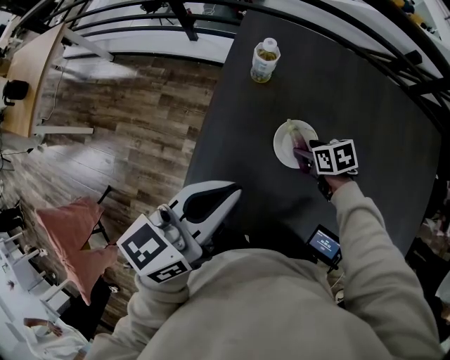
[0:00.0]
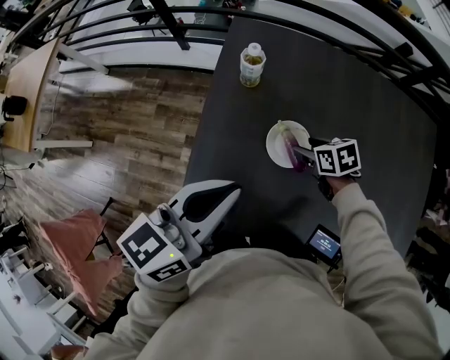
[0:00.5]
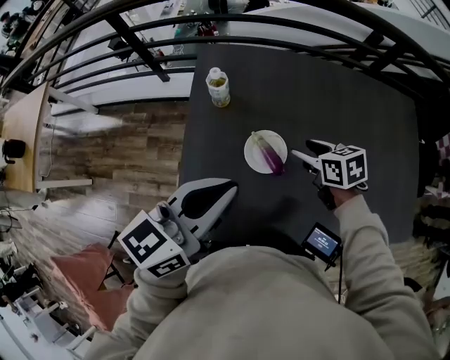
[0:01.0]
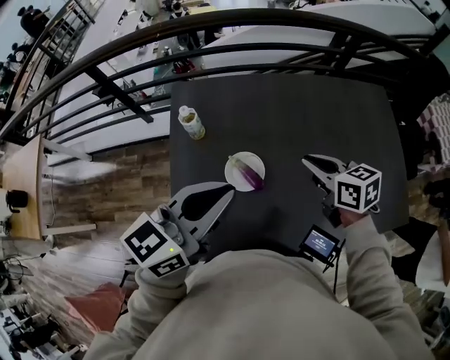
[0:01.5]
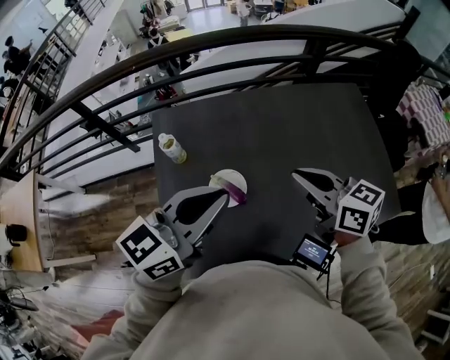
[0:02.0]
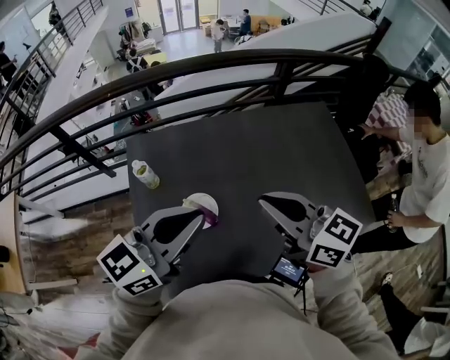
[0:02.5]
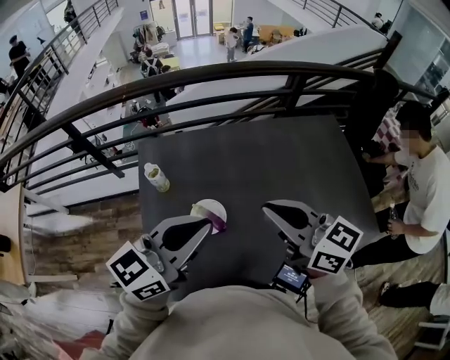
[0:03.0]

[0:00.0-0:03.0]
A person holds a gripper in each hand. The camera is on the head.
0:00.0 to 0:01.5: The left gripper shifts by approximately 15 cm, and rotates approximately 30 degrees, while the right gripper is displaced upward by about 25 cm, rotates about 40 degrees, and closes.
0:01.5 to 0:03.0: The right gripper goes approximately 20 cm upward and backward, and turns by about 30 degrees; the left gripper changes place by approximately 5 cm.

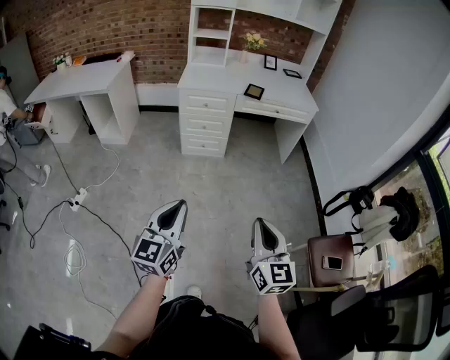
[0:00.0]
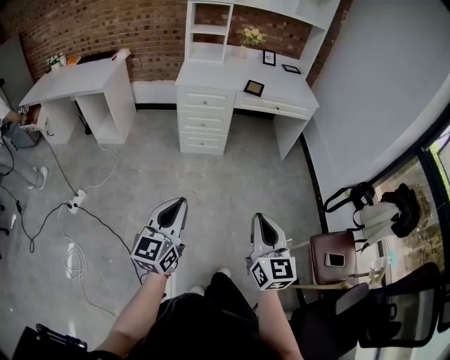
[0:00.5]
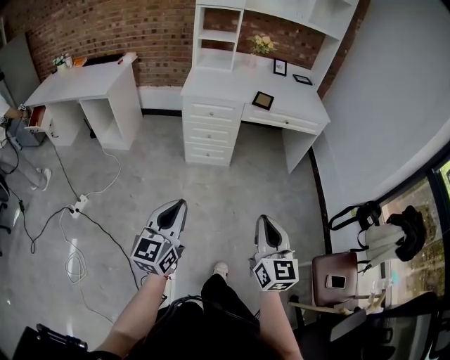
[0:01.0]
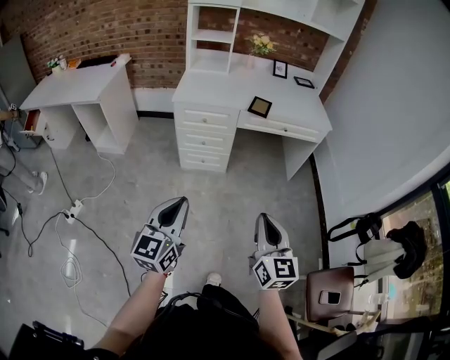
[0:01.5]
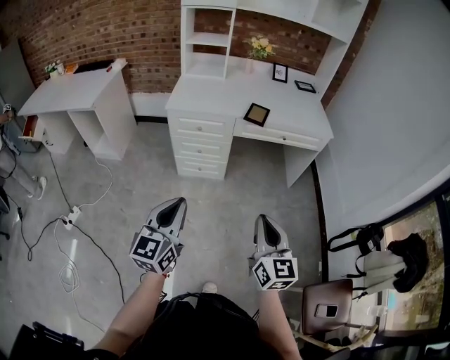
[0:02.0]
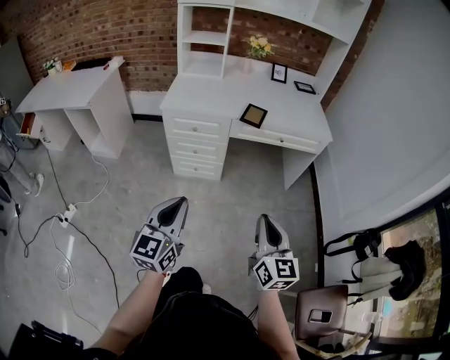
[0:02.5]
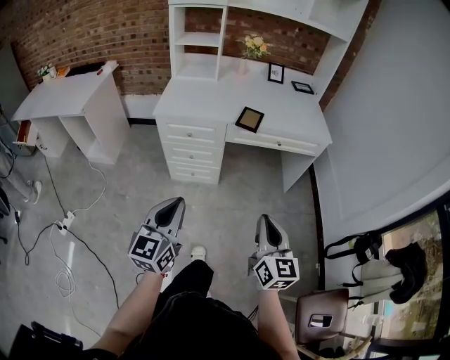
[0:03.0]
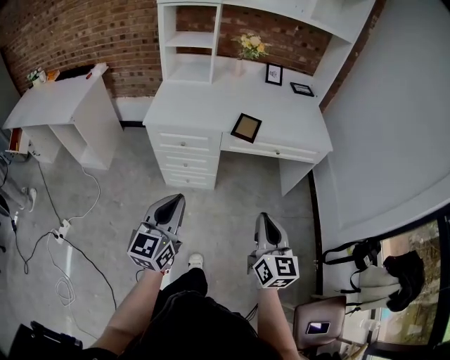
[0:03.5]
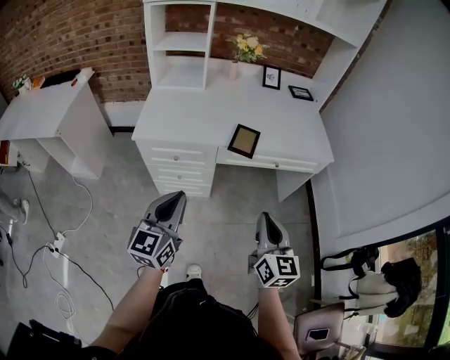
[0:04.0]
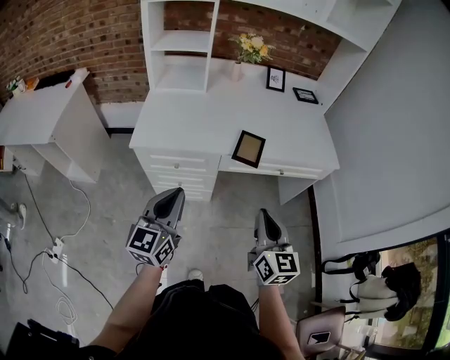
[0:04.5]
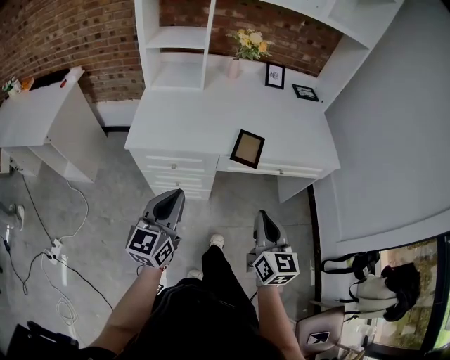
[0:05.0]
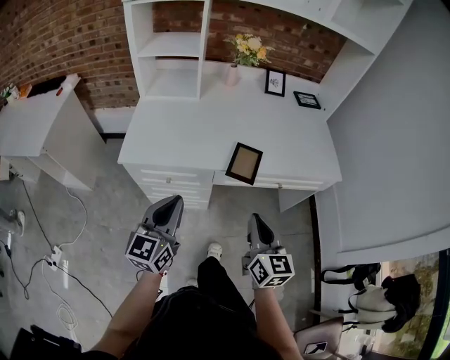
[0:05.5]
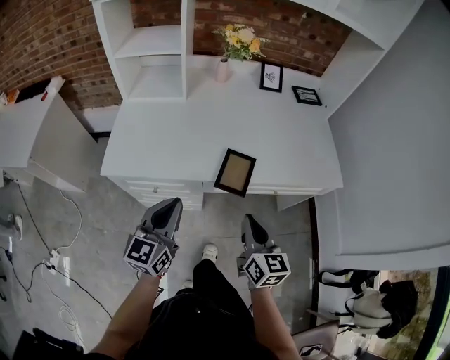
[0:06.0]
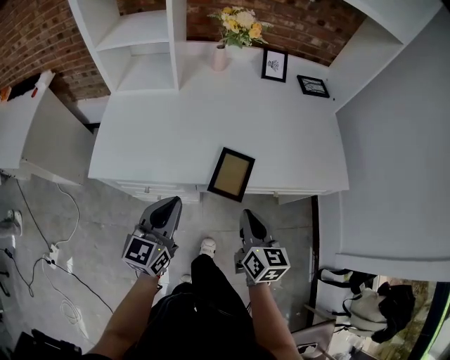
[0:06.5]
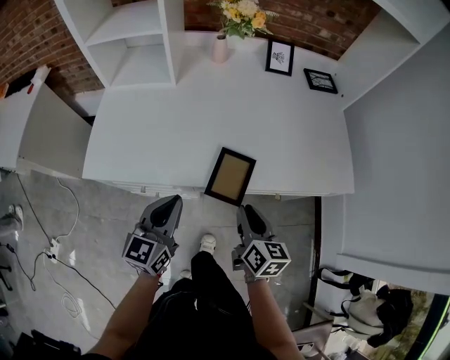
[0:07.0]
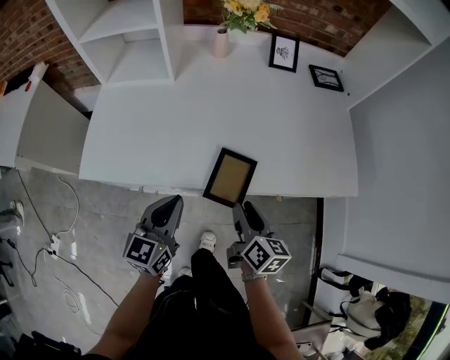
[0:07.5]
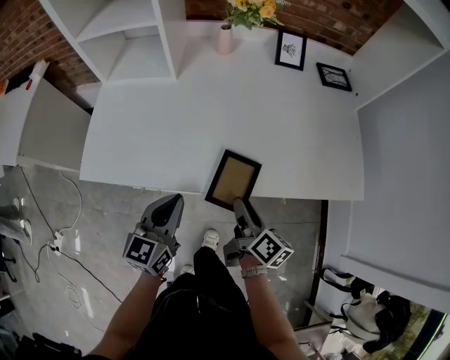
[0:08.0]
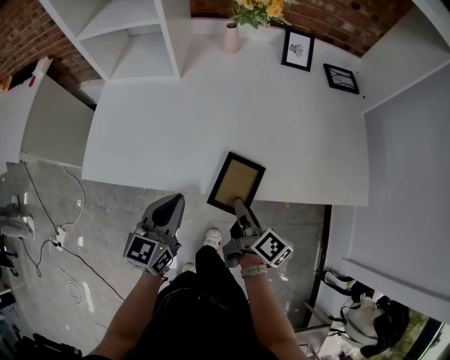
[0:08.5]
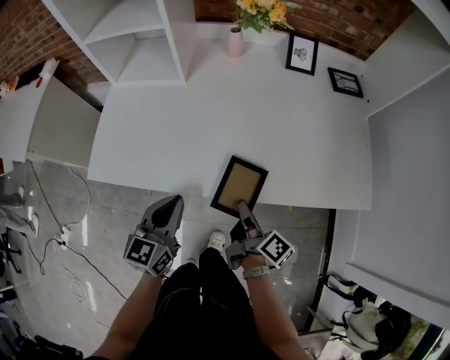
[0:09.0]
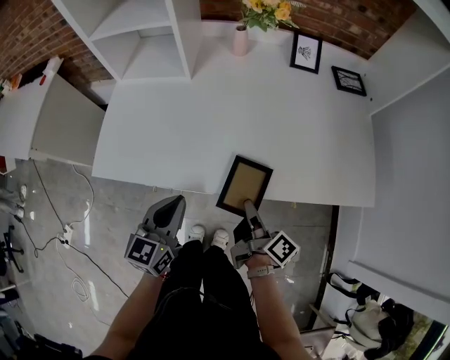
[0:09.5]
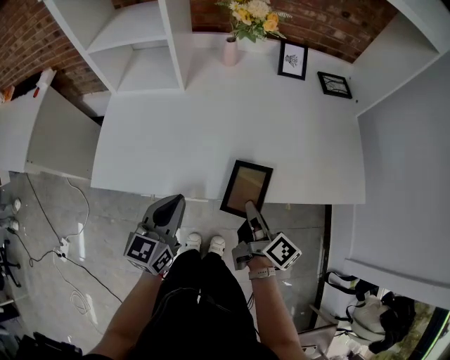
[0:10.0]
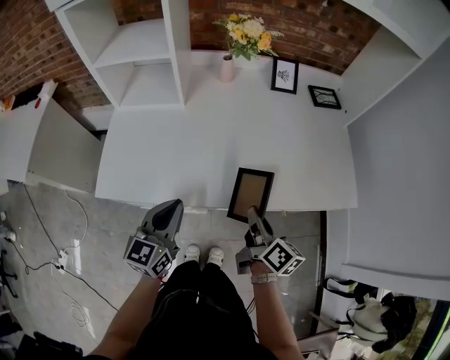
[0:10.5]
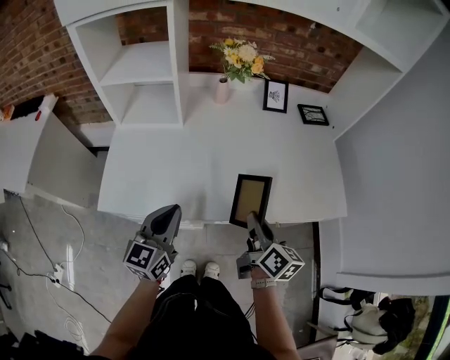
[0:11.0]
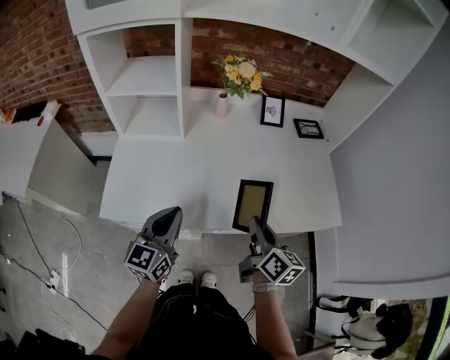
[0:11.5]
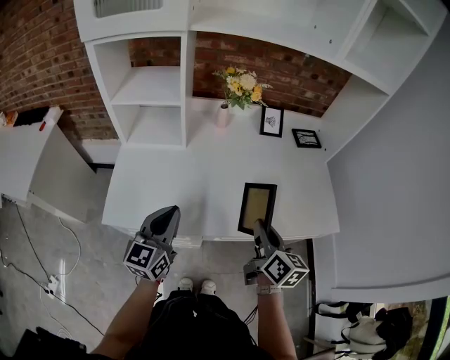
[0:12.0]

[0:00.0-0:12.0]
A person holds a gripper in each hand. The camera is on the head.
0:00.0 to 0:02.0: The two grippers go some 30 cm forward.
0:02.0 to 0:04.0: Both grippers move forward, about 25 cm.
0:04.0 to 0:06.0: The two grippers go roughly 20 cm forward.
0:06.0 to 0:08.0: Both grippers travel together forward and downward, roughly 15 cm. The right gripper rotates around the line of its fingers by some 40 degrees, clockwise from behind, and opens.
0:08.0 to 0:10.0: The right gripper closes.
0:10.0 to 0:12.0: The grippers both shift upward by some 10 cm. The right gripper changes its angle by some 30 degrees.

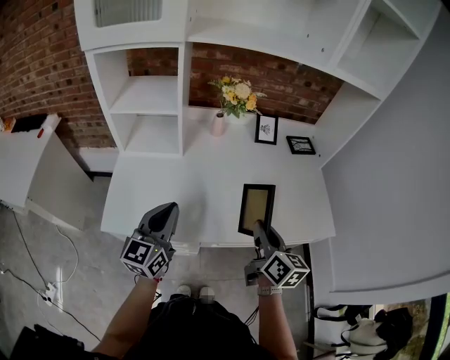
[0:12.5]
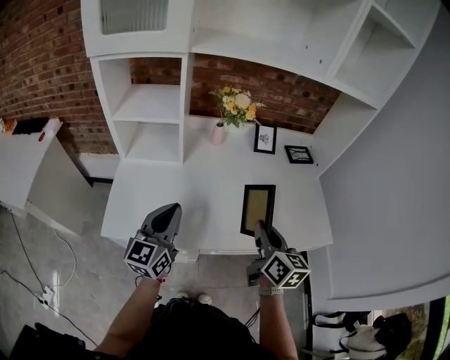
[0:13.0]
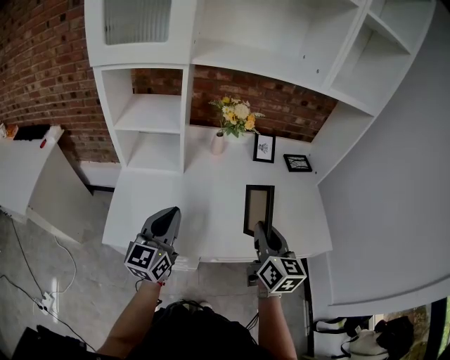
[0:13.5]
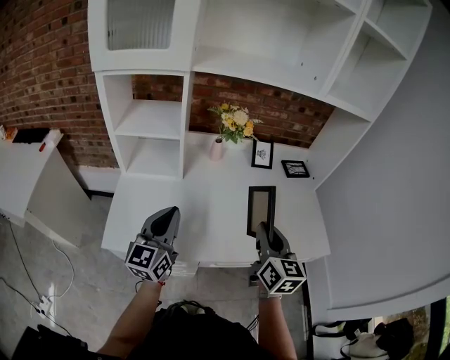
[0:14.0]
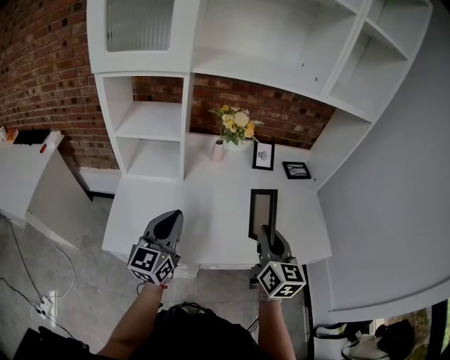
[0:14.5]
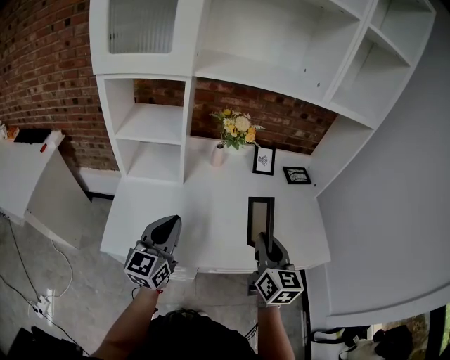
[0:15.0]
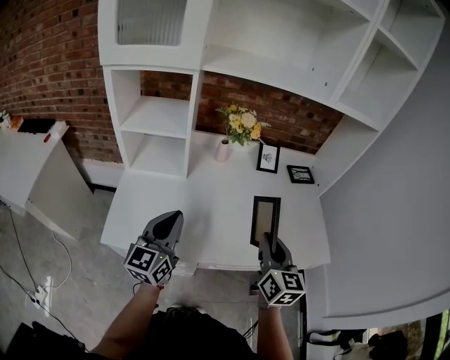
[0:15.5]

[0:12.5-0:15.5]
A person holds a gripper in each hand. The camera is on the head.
0:12.5 to 0:14.0: The right gripper heads upward, covering some 5 cm.
0:14.0 to 0:15.5: The grippers move only a little.

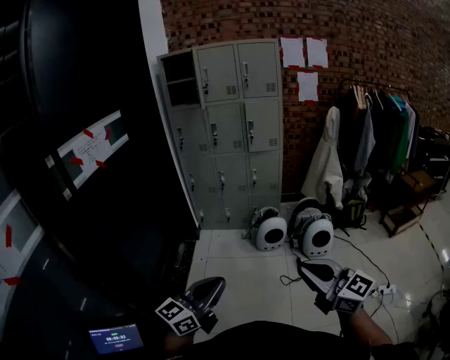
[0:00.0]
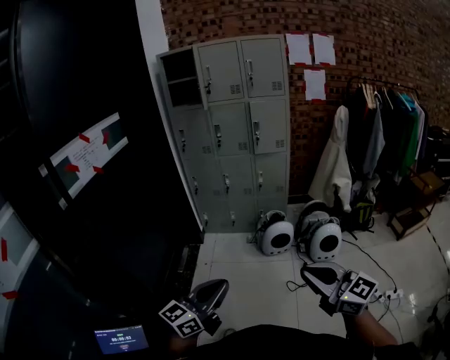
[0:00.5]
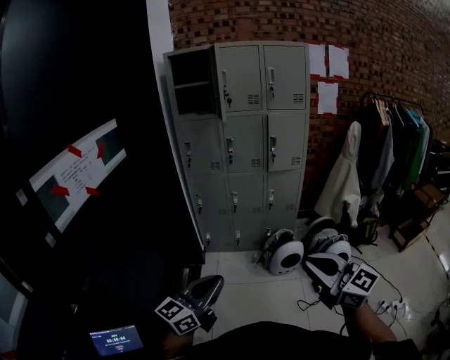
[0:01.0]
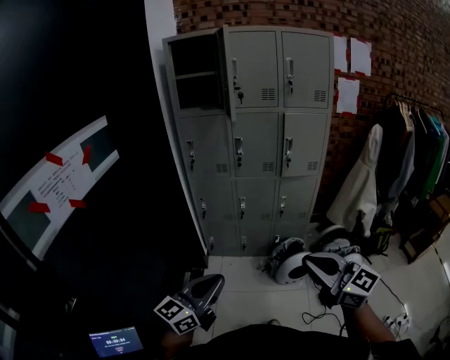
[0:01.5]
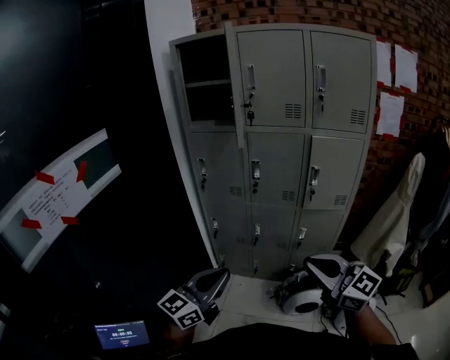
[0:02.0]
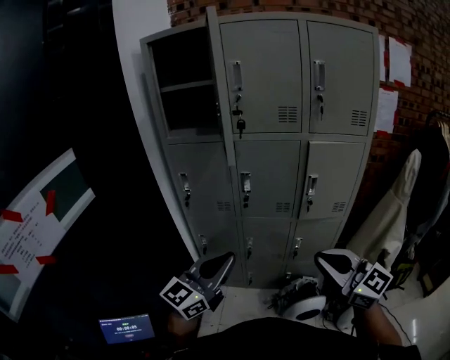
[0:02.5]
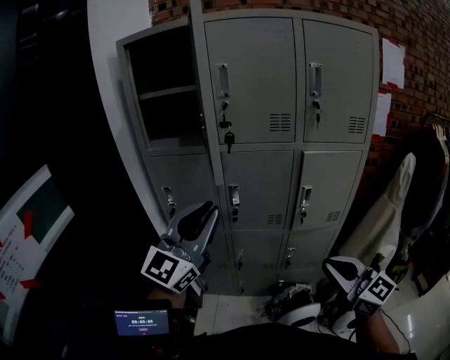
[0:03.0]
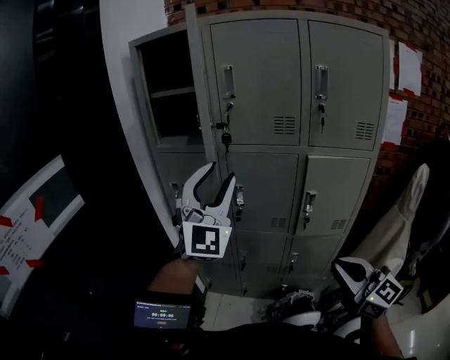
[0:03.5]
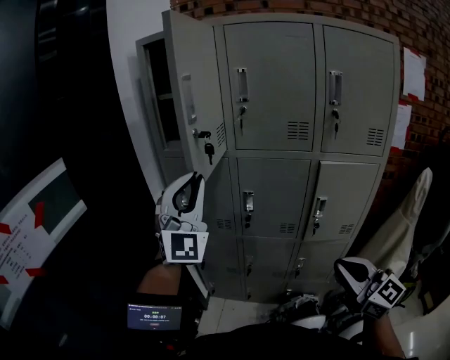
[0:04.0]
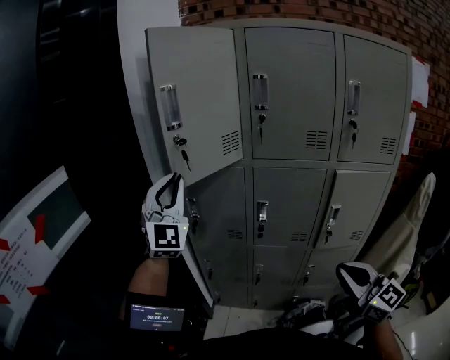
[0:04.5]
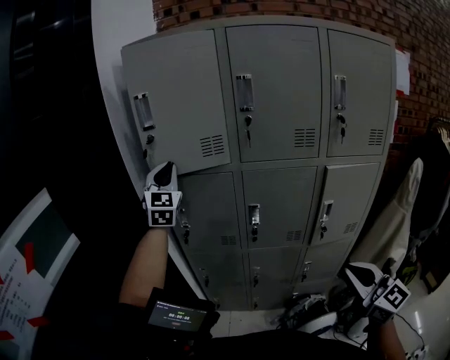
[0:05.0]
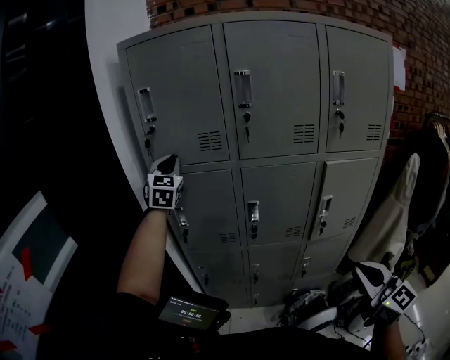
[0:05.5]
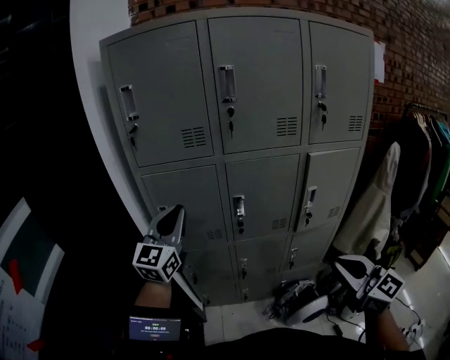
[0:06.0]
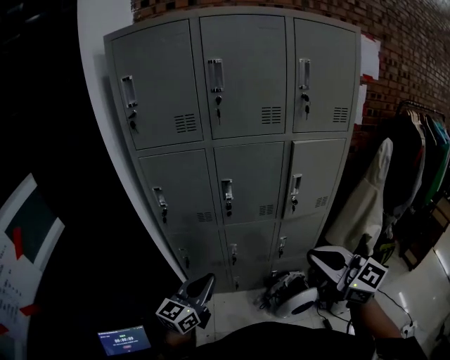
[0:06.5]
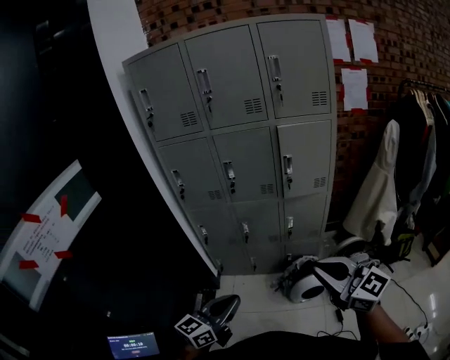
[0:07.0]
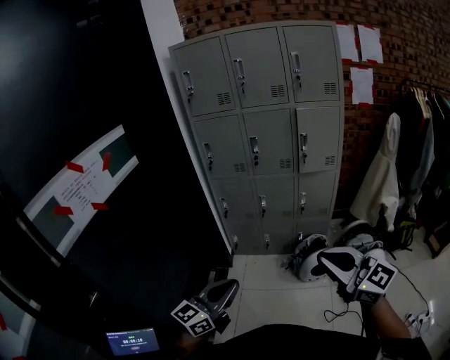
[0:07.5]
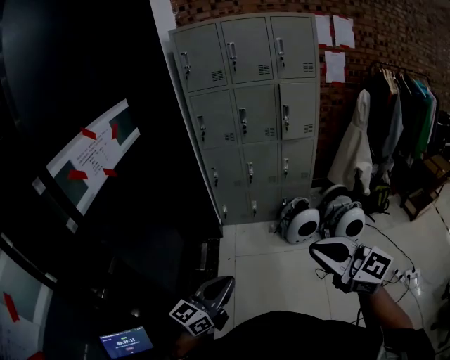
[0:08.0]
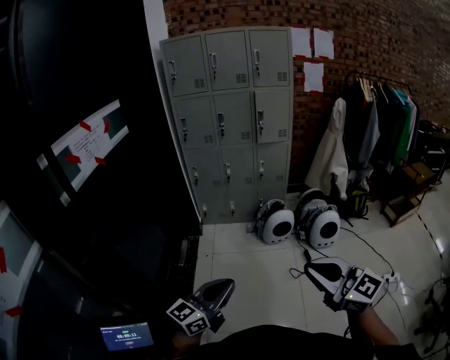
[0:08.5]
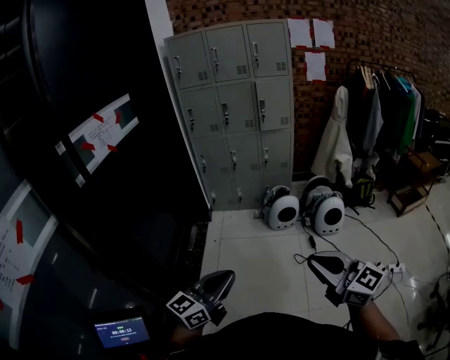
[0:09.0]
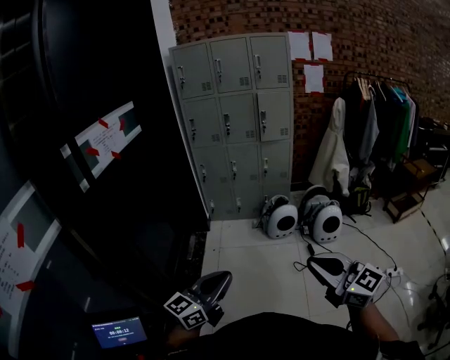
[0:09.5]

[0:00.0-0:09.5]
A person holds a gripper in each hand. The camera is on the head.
0:00.0 to 0:02.0: The two grippers travel together, forward, approximately 60 cm.
0:02.0 to 0:04.0: The right gripper heads forward and to the right, covering roughly 20 cm, while the left gripper heads forward and upward, covering approximately 40 cm, twists about 60 degrees clockwise, seen from behind, and opens, then closes again.
0:04.0 to 0:05.5: The left gripper is displaced forward by roughly 30 cm, and turns by approximately 30 degrees.
0:05.5 to 0:07.5: The two grippers travel together, backward, roughly 60 cm. The right gripper rotates about 30 degrees, while the left gripper swivels approximately 50 degrees.
0:07.5 to 0:09.5: The two grippers travel together, backward, approximately 40 cm.
